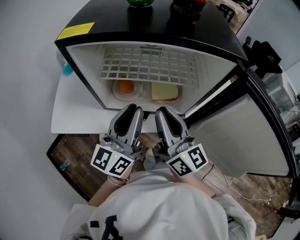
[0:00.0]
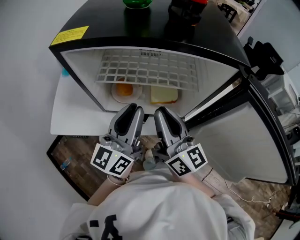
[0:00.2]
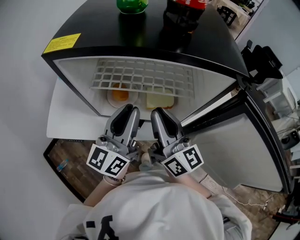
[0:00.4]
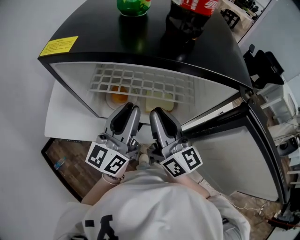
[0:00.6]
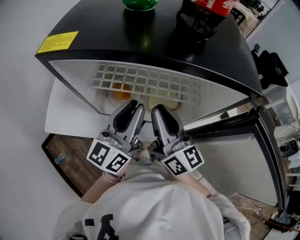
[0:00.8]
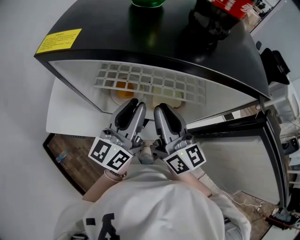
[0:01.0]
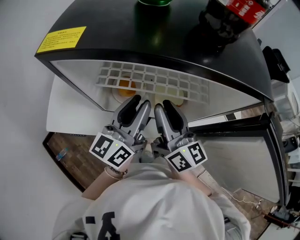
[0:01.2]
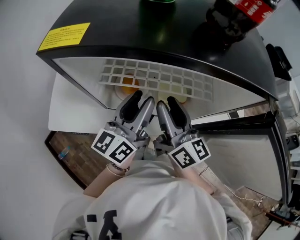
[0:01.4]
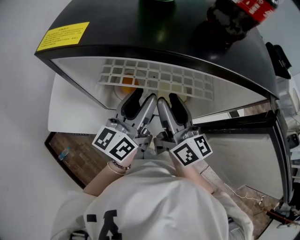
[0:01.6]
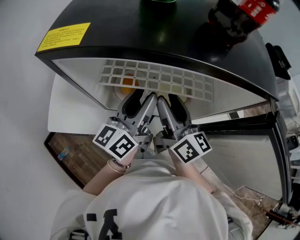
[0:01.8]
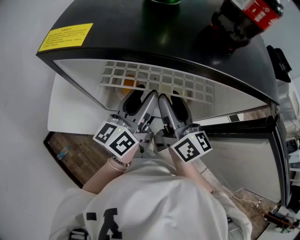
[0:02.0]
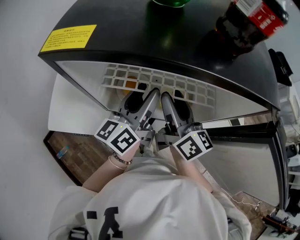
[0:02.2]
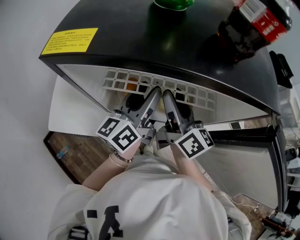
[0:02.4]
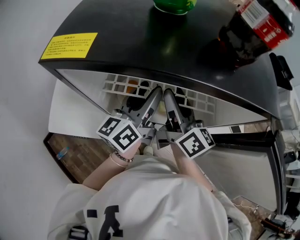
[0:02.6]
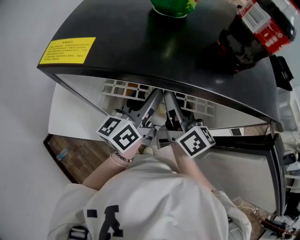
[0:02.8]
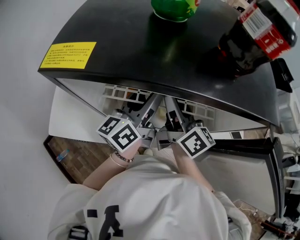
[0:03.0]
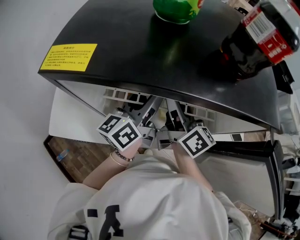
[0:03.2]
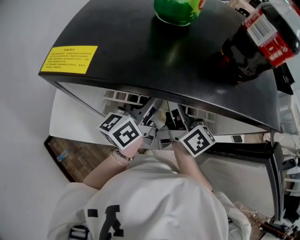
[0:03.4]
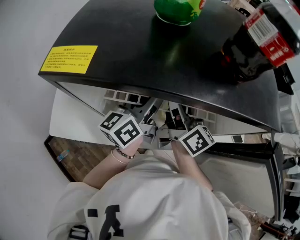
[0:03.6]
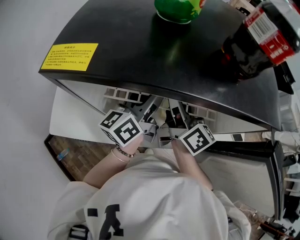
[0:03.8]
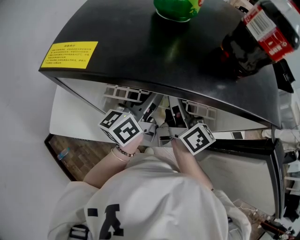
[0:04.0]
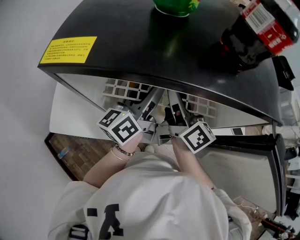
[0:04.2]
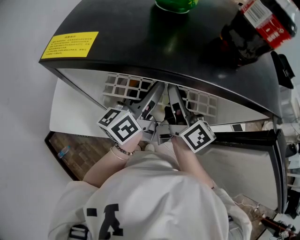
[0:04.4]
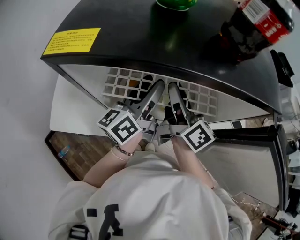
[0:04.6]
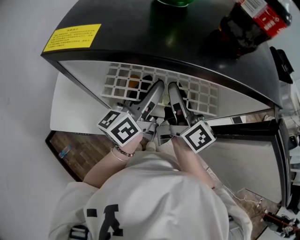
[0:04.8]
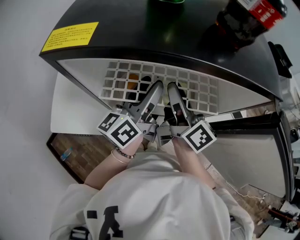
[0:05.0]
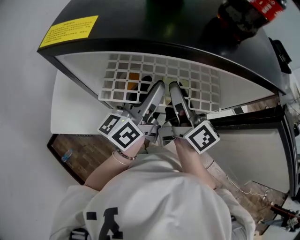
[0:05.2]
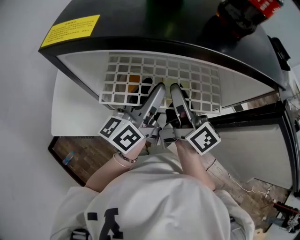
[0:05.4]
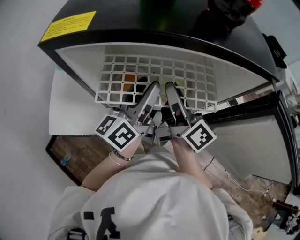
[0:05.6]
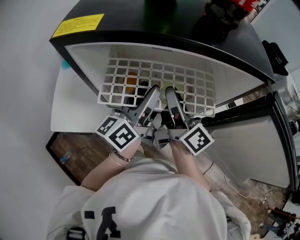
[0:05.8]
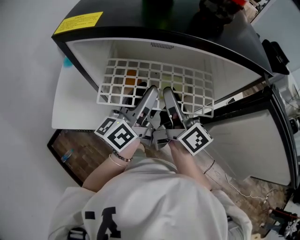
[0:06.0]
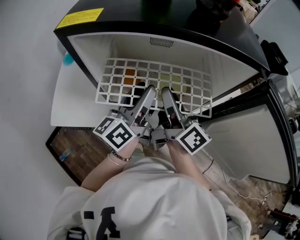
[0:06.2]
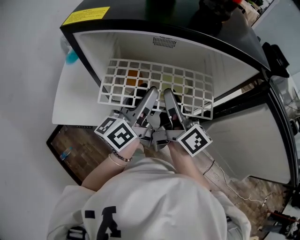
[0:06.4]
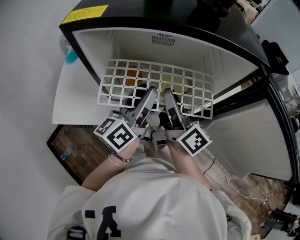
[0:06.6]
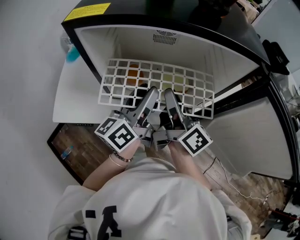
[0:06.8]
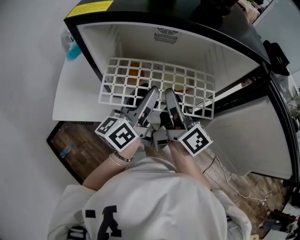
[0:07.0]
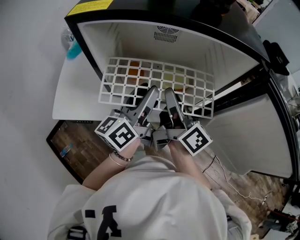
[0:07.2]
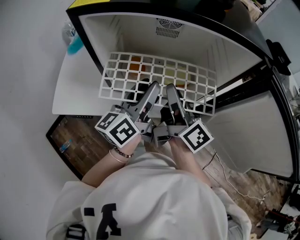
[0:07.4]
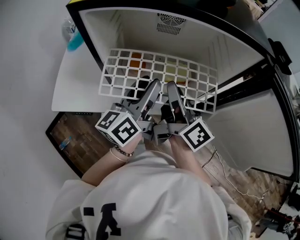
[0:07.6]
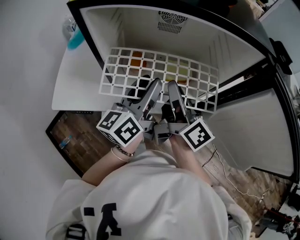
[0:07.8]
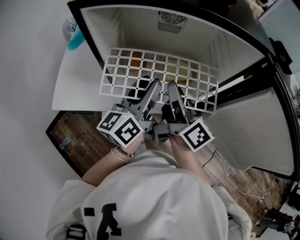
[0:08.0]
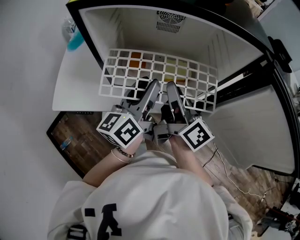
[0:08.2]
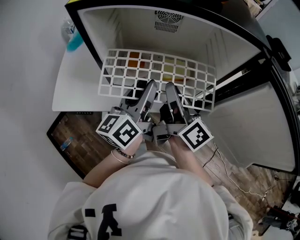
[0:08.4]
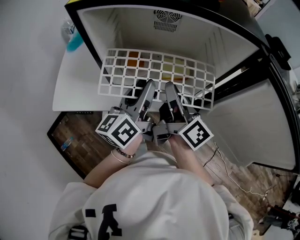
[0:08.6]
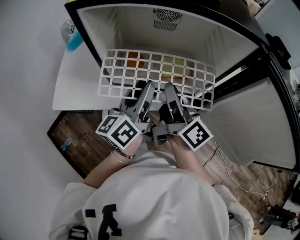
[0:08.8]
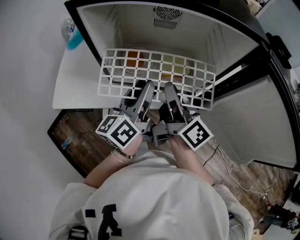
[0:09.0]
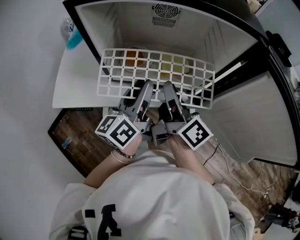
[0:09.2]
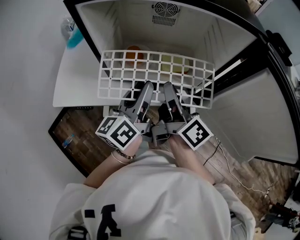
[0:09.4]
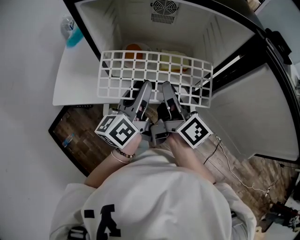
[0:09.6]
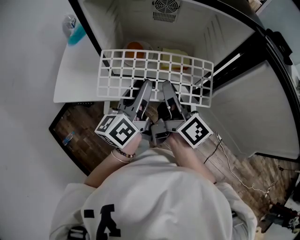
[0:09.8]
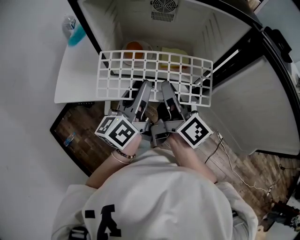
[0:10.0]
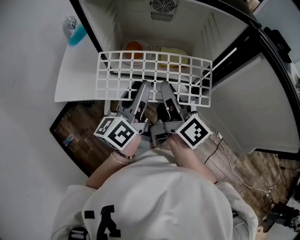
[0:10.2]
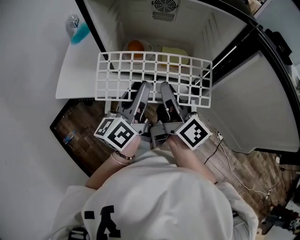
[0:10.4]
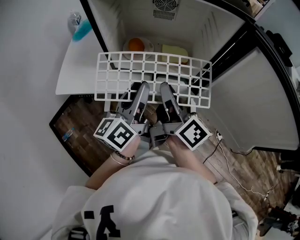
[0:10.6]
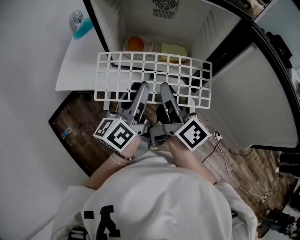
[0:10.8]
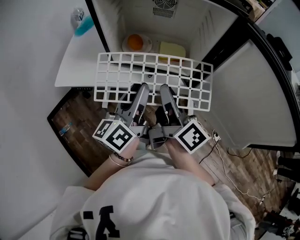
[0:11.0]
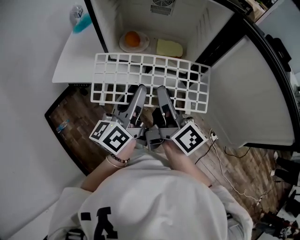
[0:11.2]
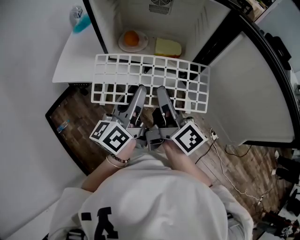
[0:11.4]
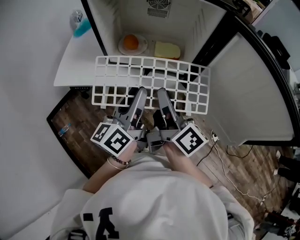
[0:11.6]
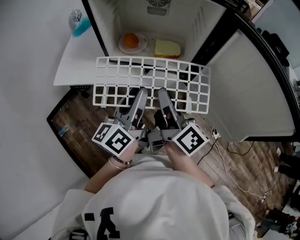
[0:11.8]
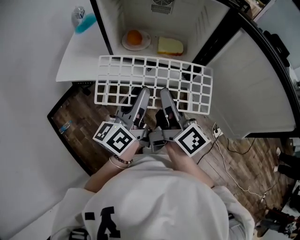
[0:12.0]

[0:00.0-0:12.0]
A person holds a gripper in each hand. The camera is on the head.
0:00.0 to 0:01.6: The two grippers go approximately 10 cm forward. The right gripper opens. The left gripper opens.
0:01.6 to 0:03.0: Both grippers travel together forward, approximately 5 cm.
0:03.0 to 0:04.4: The grippers stay close to where they were, moving slightly.
0:04.4 to 0:06.0: Both grippers move backward, roughly 5 cm.
0:06.0 to 0:07.6: Both grippers move backward, some 5 cm.
0:07.6 to 0:09.0: The grippers move only a little.
0:09.0 to 0:10.4: The grippers both shift backward by about 5 cm.
0:10.4 to 0:12.0: Both grippers move backward, some 10 cm.

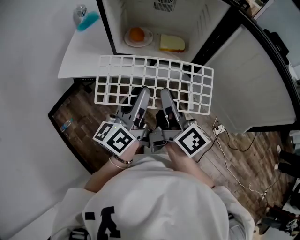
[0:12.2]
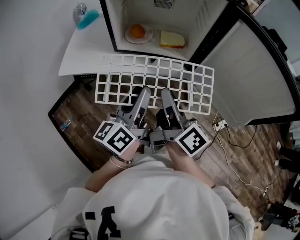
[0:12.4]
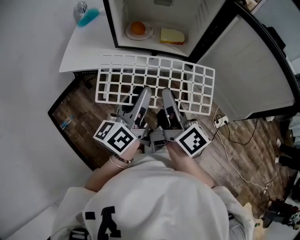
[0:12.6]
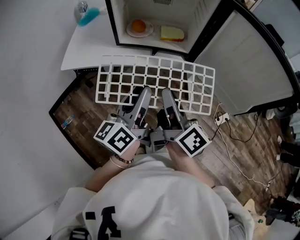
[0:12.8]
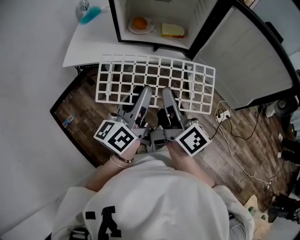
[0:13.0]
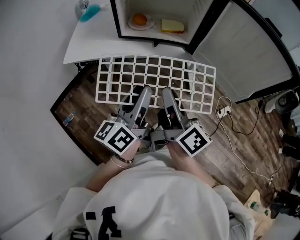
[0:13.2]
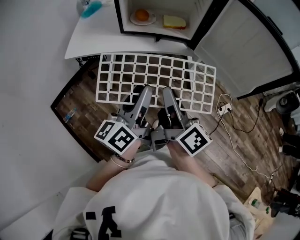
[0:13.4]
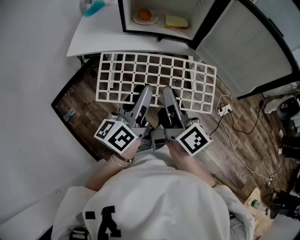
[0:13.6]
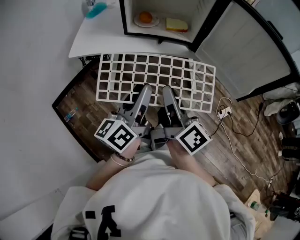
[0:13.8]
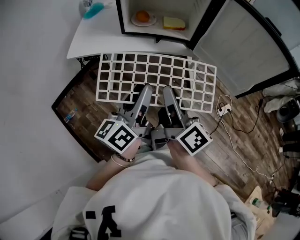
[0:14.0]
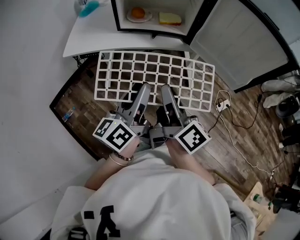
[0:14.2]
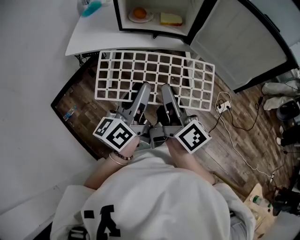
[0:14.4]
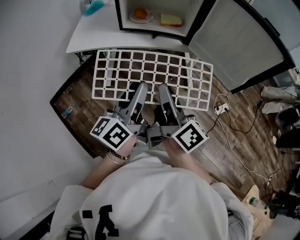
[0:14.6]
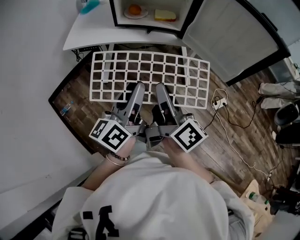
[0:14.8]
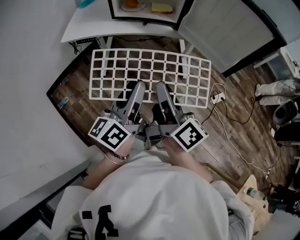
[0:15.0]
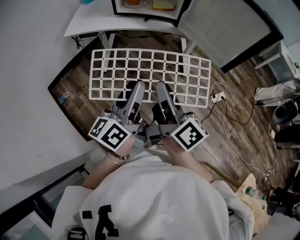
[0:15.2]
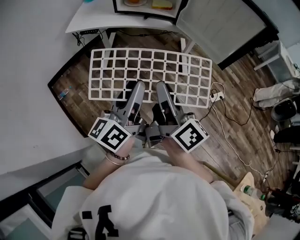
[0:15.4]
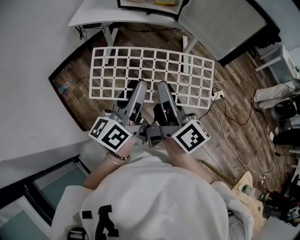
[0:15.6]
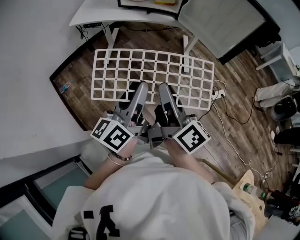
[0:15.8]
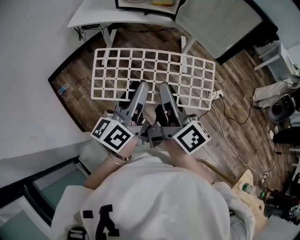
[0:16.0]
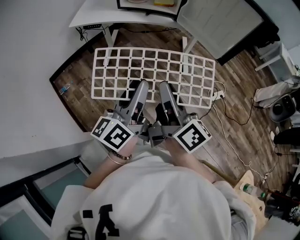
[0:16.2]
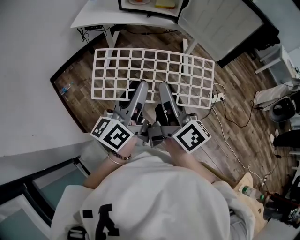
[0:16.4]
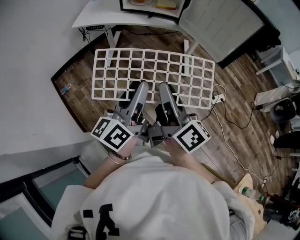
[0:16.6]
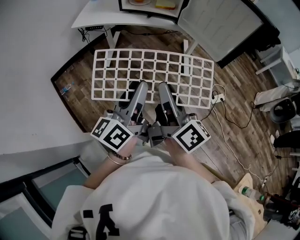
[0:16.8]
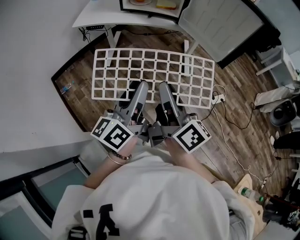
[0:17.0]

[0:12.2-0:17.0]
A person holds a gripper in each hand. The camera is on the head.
0:12.2 to 0:13.8: Both grippers travel together backward, roughly 15 cm.
0:13.8 to 0:15.4: Both grippers travel together backward and to the right, some 20 cm.
0:15.4 to 0:17.0: The grippers stay close to where they were, moving slightly.

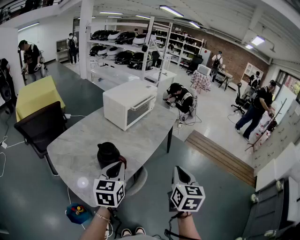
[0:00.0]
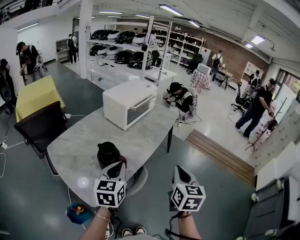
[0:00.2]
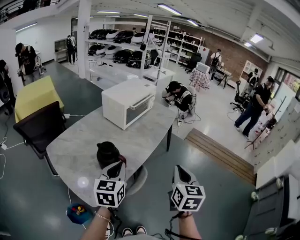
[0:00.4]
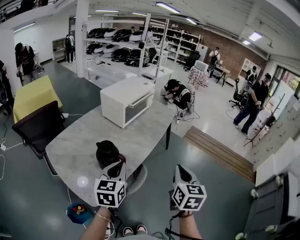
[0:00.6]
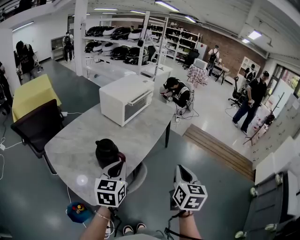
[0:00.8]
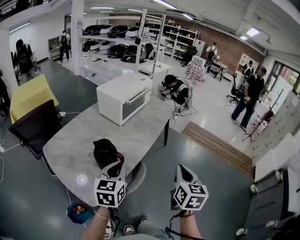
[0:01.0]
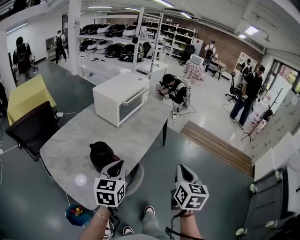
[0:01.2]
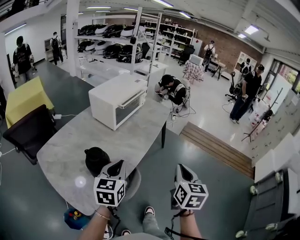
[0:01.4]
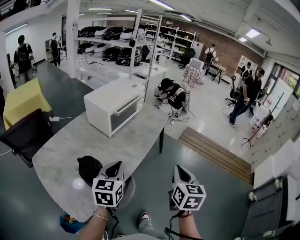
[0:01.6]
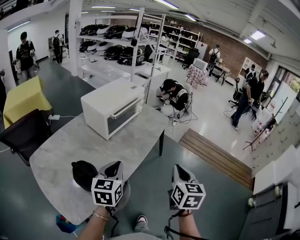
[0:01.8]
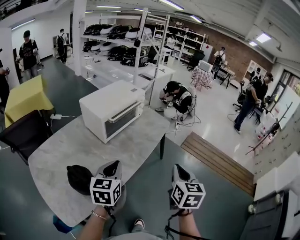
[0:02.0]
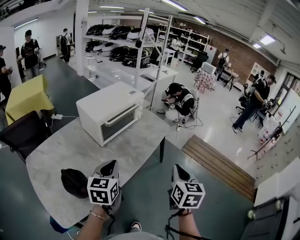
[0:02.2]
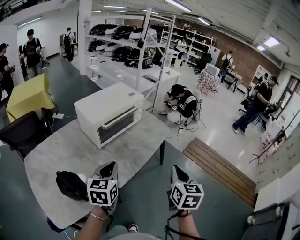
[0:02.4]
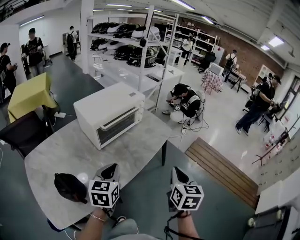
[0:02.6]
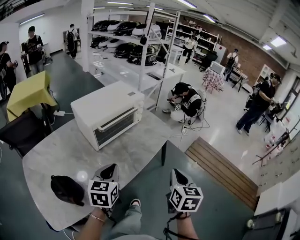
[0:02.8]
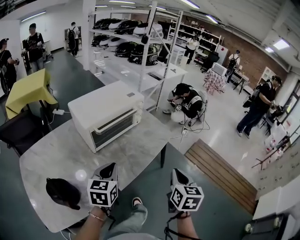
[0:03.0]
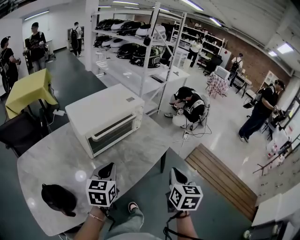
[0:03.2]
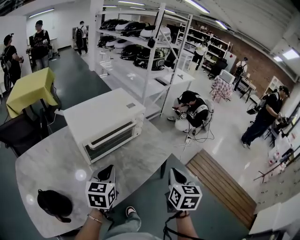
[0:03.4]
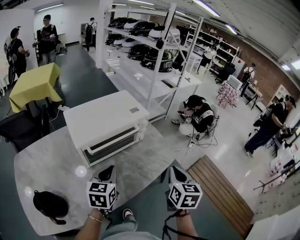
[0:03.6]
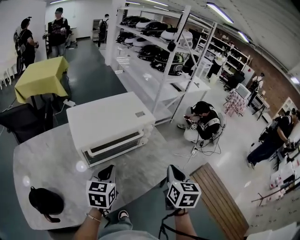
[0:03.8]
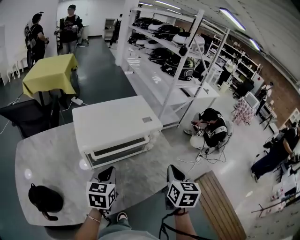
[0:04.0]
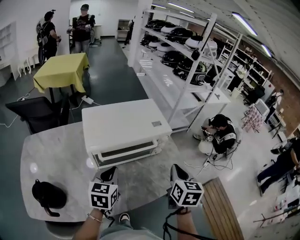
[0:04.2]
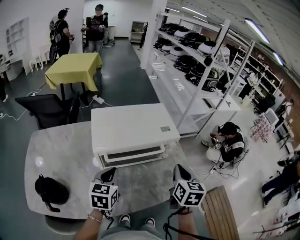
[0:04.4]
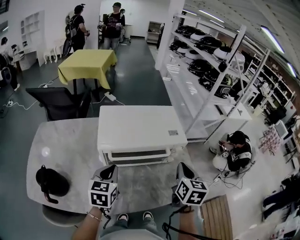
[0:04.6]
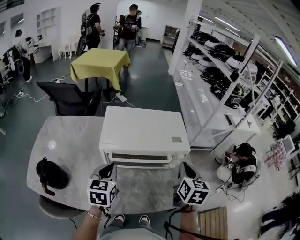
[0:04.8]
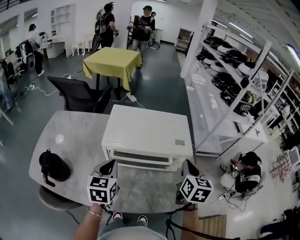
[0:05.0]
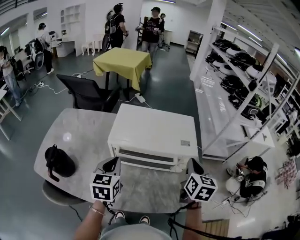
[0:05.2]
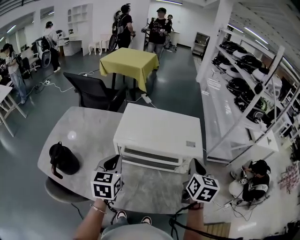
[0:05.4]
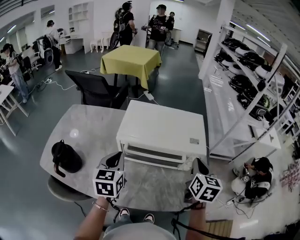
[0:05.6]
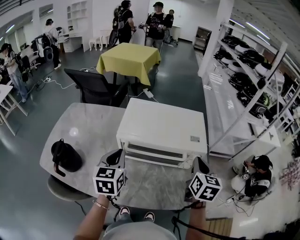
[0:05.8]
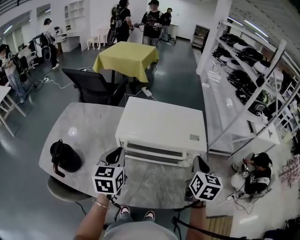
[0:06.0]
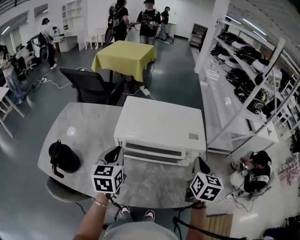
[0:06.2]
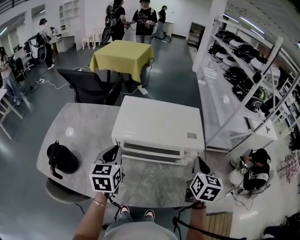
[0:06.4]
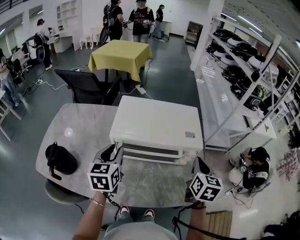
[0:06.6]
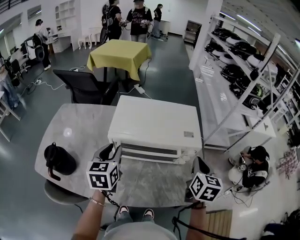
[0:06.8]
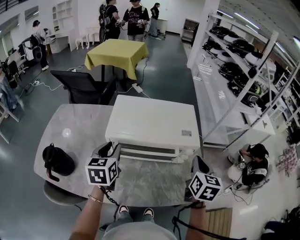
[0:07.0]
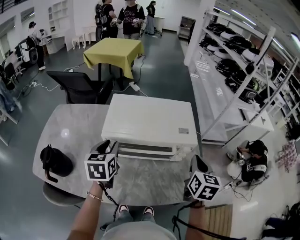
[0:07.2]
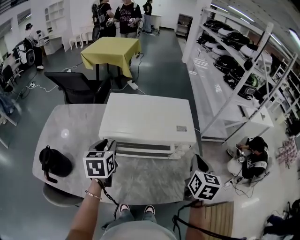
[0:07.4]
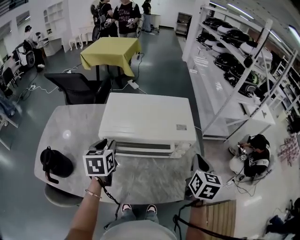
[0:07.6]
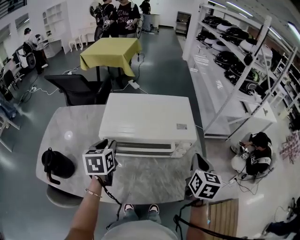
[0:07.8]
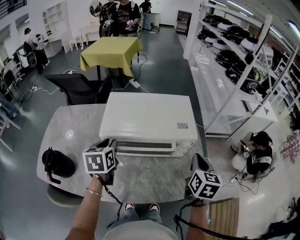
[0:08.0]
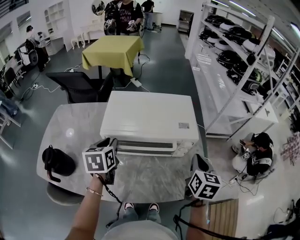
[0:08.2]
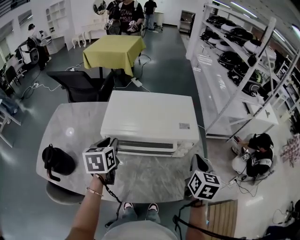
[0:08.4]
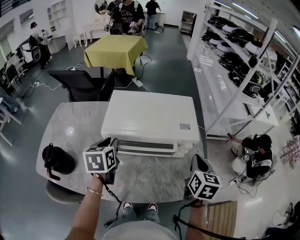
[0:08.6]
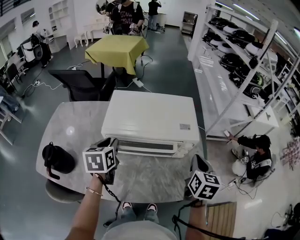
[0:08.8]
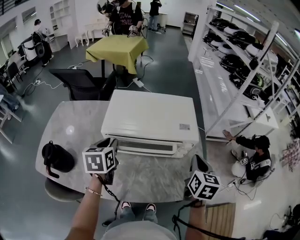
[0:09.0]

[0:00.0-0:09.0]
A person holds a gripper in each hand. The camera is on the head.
0:00.0 to 0:01.6: The right gripper is displaced forward and to the right by some 10 cm. Meanwhile the left gripper shifts approximately 10 cm forward.
0:01.6 to 0:03.0: The left gripper travels forward by some 20 cm; the right gripper goes some 25 cm forward and to the right.
0:03.0 to 0:04.4: The right gripper shifts by approximately 35 cm, and swivels approximately 30 degrees; the left gripper shifts by roughly 20 cm, and turns by roughly 30 degrees.
0:04.4 to 0:06.0: The left gripper moves approximately 5 cm, and changes its angle by roughly 30 degrees; the right gripper shifts some 10 cm forward.
0:06.0 to 0:07.6: The left gripper ends up about 5 cm from where it was, and opens; the right gripper moves to the right, some 5 cm.
0:07.6 to 0:09.0: The grippers move only a little.
